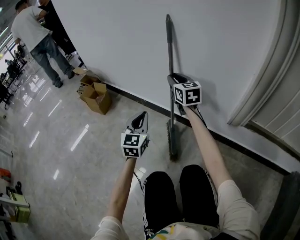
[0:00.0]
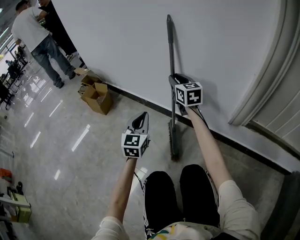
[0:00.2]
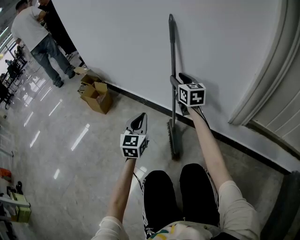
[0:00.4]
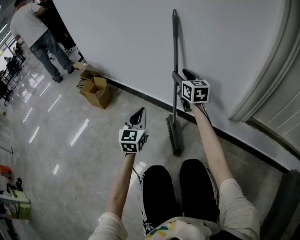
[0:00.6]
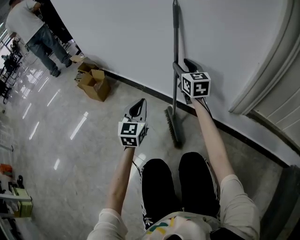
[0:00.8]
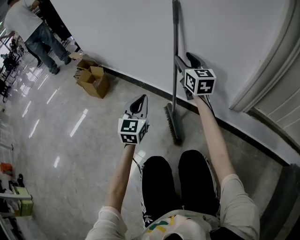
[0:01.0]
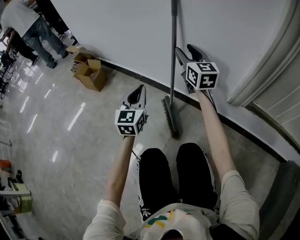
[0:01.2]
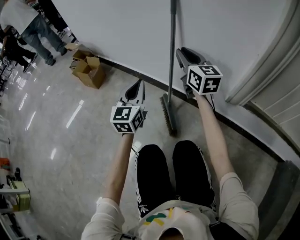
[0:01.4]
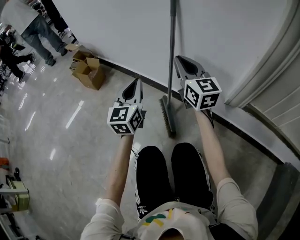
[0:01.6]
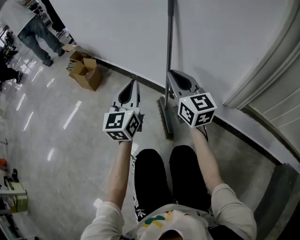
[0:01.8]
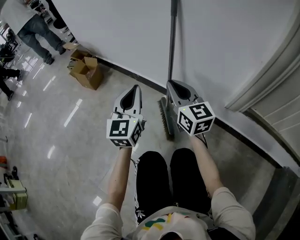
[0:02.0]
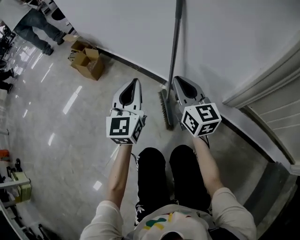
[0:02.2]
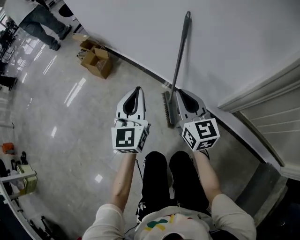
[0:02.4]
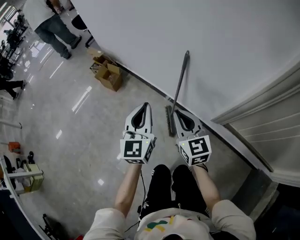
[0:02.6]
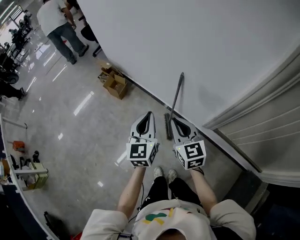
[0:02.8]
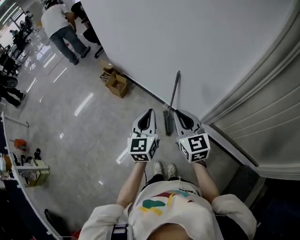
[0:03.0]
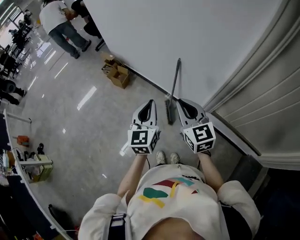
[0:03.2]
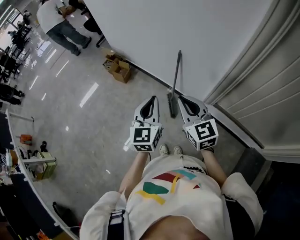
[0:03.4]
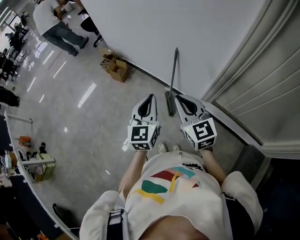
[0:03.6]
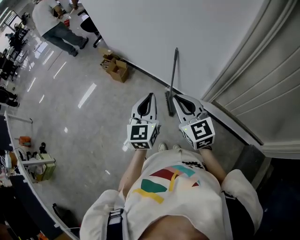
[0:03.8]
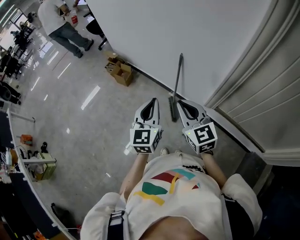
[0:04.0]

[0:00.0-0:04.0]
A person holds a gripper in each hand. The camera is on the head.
0:00.0 to 0:01.4: The right gripper moves backward, some 5 cm, and opens, then closes again.
0:01.4 to 0:02.6: The right gripper moves upward and backward, approximately 30 cm. The left gripper is displaced upward by about 35 cm.
0:02.6 to 0:04.0: Both grippers travel together upward and backward, approximately 30 cm.

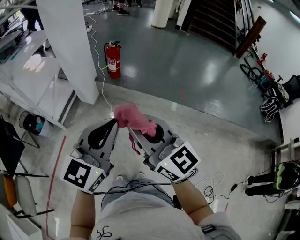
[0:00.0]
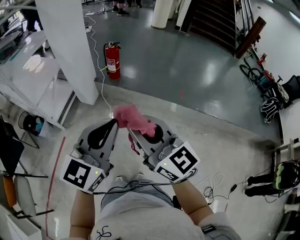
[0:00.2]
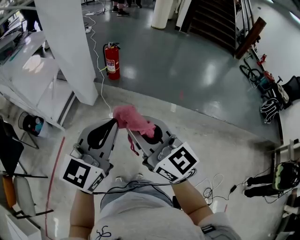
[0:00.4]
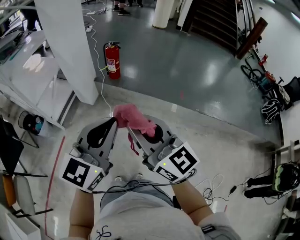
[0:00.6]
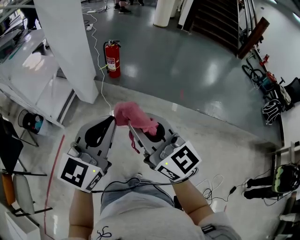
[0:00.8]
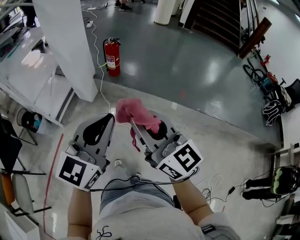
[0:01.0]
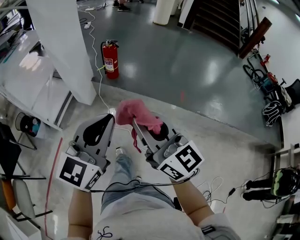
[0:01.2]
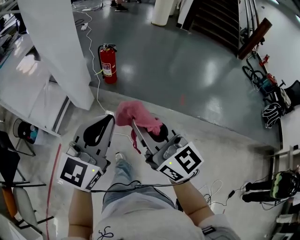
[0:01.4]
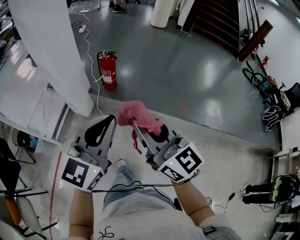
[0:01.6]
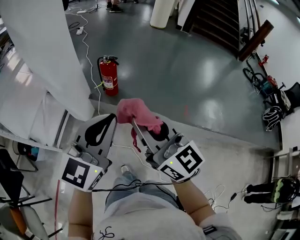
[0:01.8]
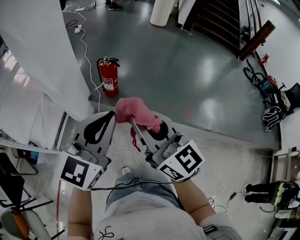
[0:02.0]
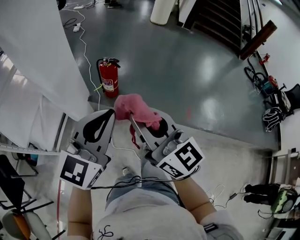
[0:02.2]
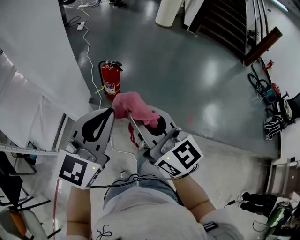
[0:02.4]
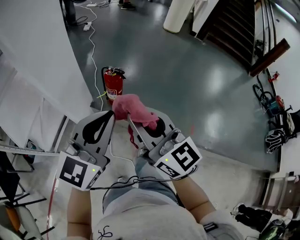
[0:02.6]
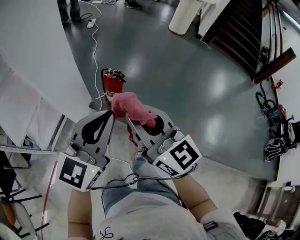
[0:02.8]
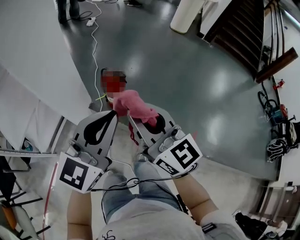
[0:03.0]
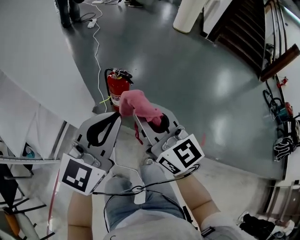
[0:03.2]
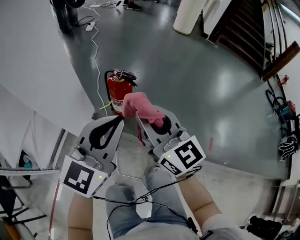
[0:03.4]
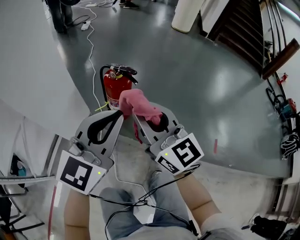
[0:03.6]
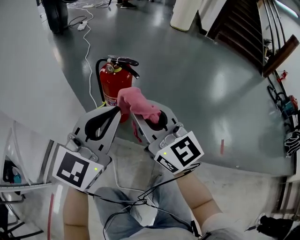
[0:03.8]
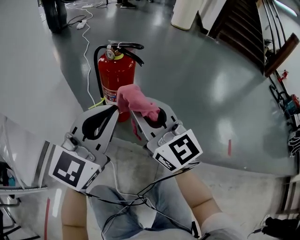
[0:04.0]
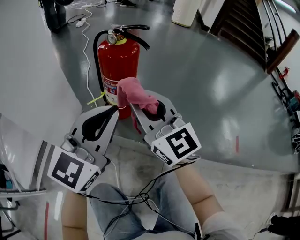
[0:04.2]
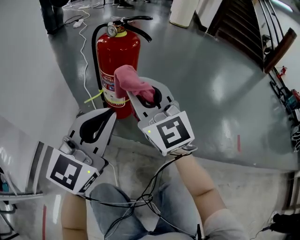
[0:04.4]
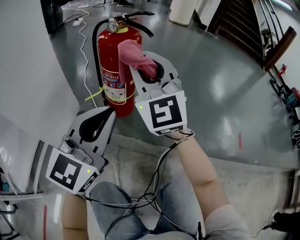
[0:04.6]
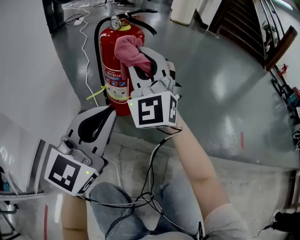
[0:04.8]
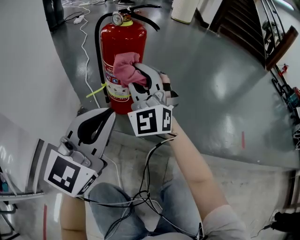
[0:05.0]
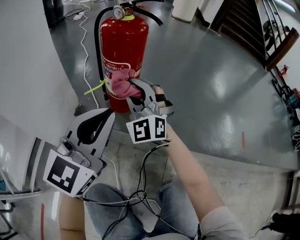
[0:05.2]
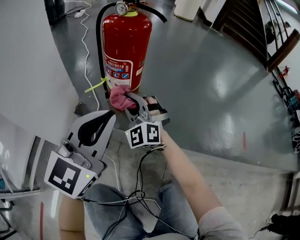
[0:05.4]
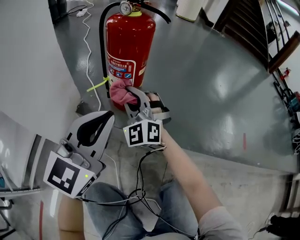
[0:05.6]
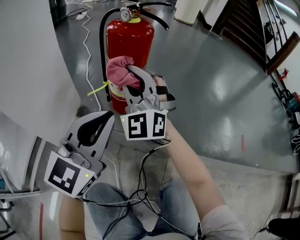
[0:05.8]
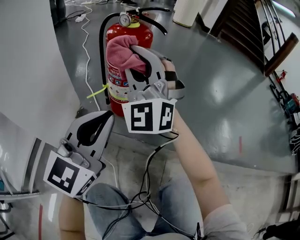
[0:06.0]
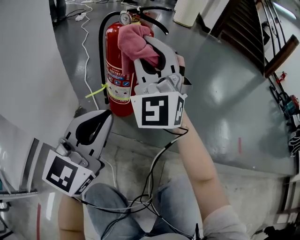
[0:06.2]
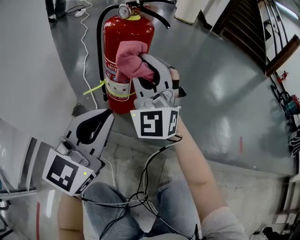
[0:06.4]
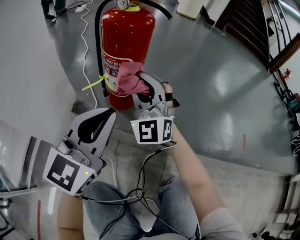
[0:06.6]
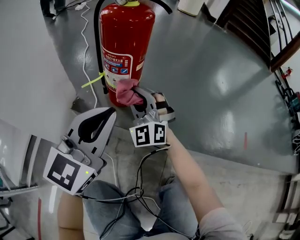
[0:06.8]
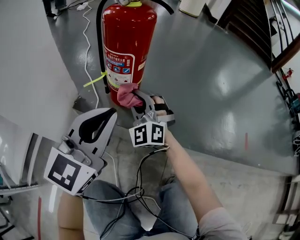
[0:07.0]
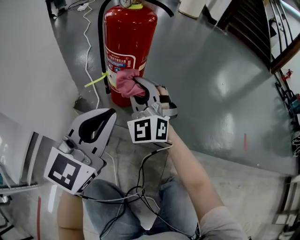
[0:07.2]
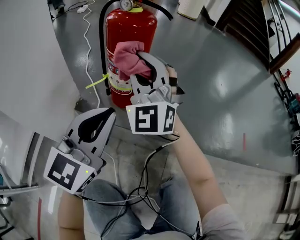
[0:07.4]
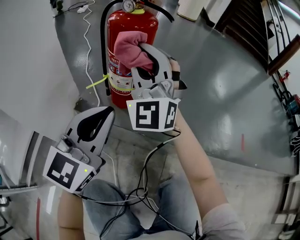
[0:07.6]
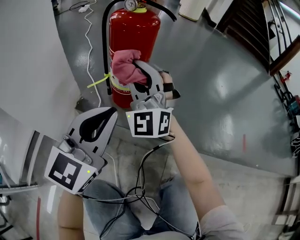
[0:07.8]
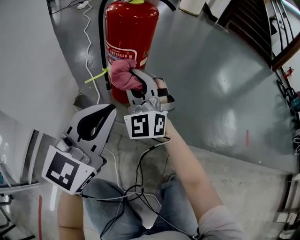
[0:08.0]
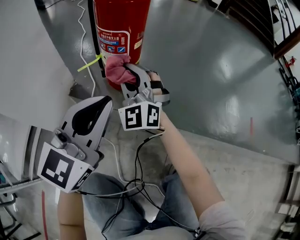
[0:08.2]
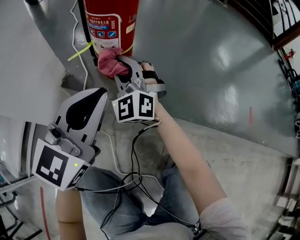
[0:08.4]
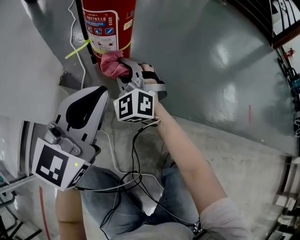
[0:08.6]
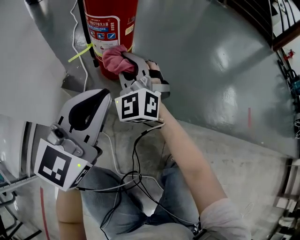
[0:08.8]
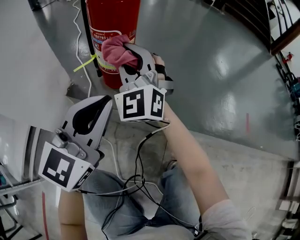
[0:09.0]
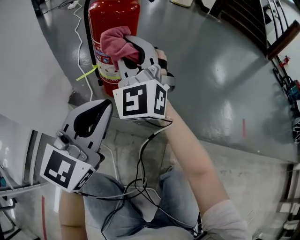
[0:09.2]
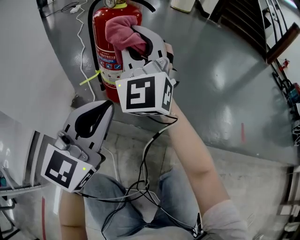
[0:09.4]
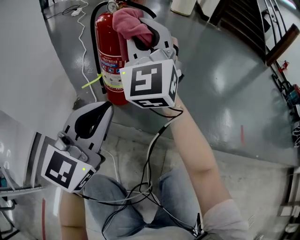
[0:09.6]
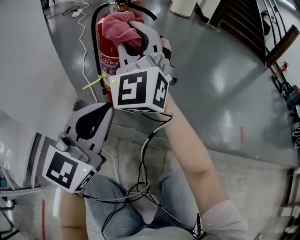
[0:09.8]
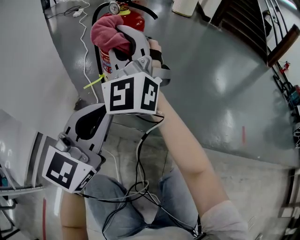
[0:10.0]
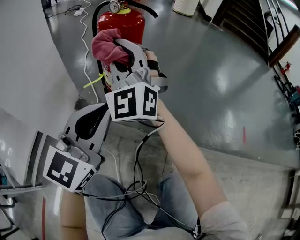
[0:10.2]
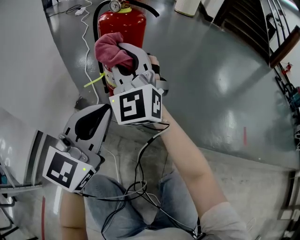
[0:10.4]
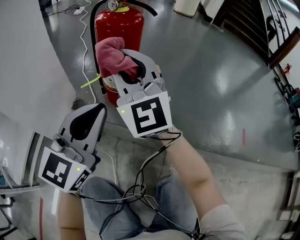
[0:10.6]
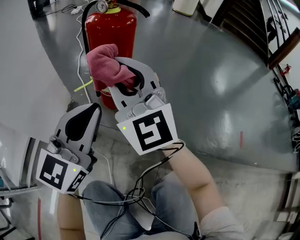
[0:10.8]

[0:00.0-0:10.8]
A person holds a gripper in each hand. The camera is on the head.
0:00.0 to 0:01.6: The two grippers go approximately 25 cm forward.
0:01.6 to 0:03.0: The grippers both shift forward by roughly 30 cm.
0:03.0 to 0:04.6: The right gripper moves downward and forward, about 40 cm, and rotates around the line of its fingers by some 40 degrees, counterclockwise from behind, while the left gripper heads downward, covering approximately 40 cm.
0:04.6 to 0:06.2: The right gripper moves about 25 cm downward and comes back, and changes its angle by roughly 20 degrees.
0:06.2 to 0:07.8: The right gripper goes up and down, about 25 cm each way, reversing 2 times.
0:07.8 to 0:09.2: The right gripper moves about 15 cm downward and comes back.
0:09.2 to 0:10.8: The right gripper goes upward and returns, some 10 cm each way, and turns by approximately 30 degrees.

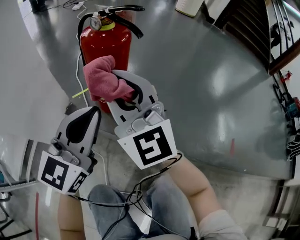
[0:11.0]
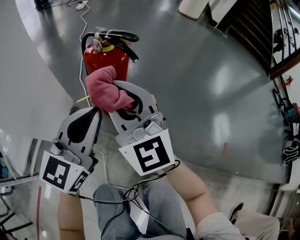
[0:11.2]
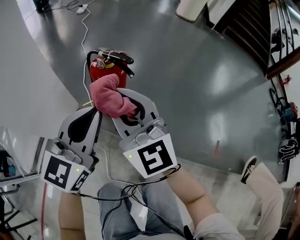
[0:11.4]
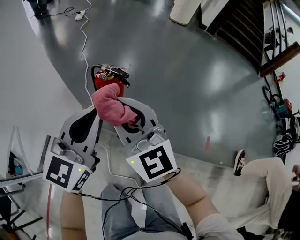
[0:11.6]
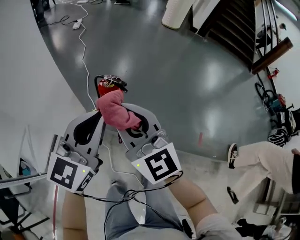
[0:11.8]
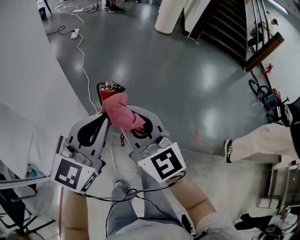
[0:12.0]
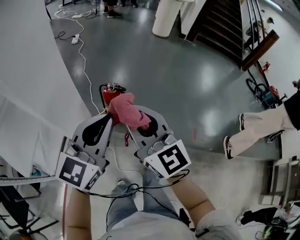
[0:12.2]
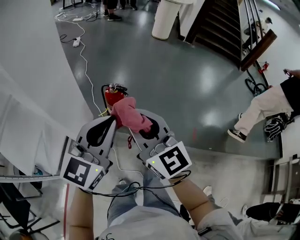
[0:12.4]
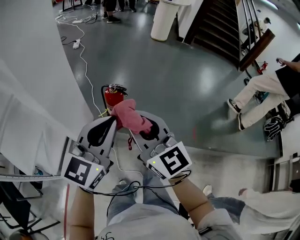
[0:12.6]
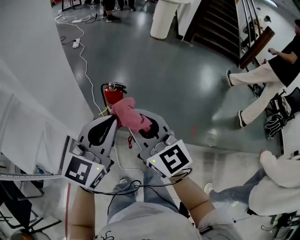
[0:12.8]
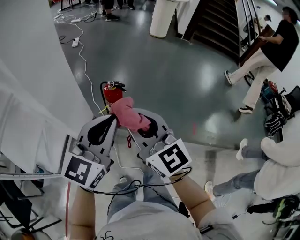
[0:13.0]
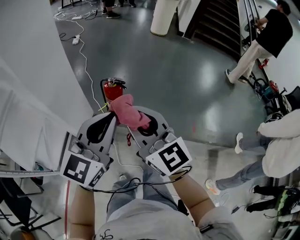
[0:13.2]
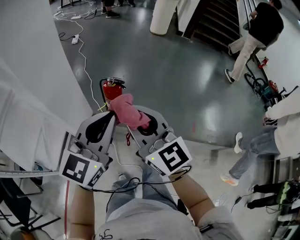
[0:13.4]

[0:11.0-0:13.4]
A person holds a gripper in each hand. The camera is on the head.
0:11.0 to 0:12.2: The right gripper shifts roughly 50 cm upward and backward, and swivels about 20 degrees, while the left gripper heads upward, covering about 50 cm.
0:12.2 to 0:13.4: Both grippers move backward, approximately 5 cm.

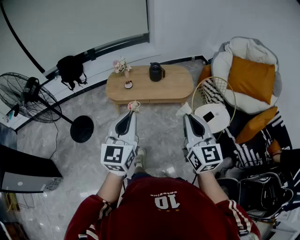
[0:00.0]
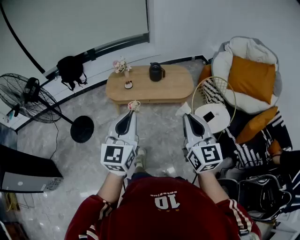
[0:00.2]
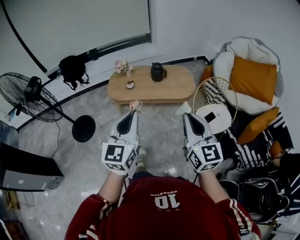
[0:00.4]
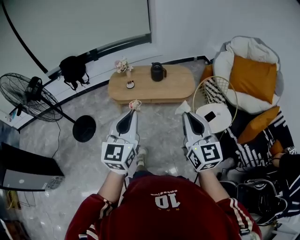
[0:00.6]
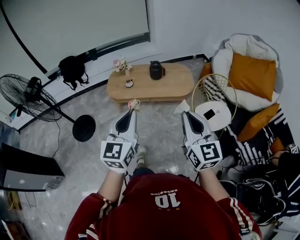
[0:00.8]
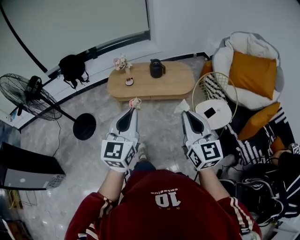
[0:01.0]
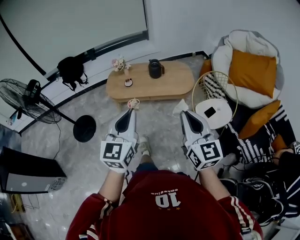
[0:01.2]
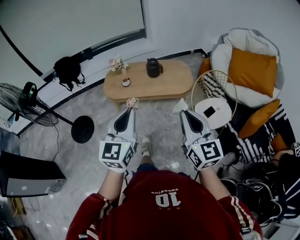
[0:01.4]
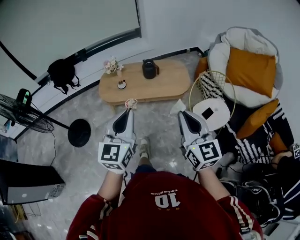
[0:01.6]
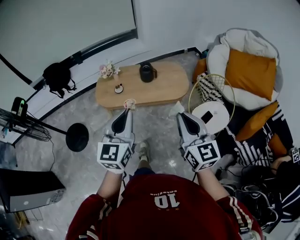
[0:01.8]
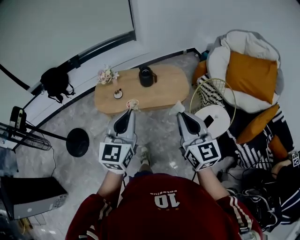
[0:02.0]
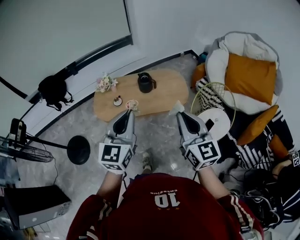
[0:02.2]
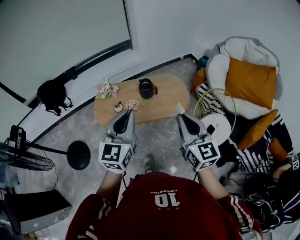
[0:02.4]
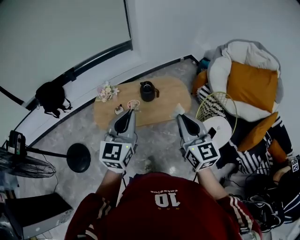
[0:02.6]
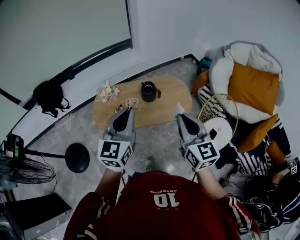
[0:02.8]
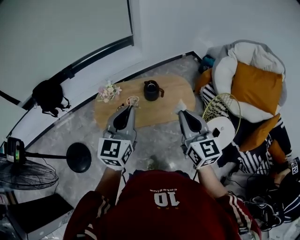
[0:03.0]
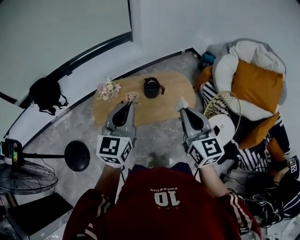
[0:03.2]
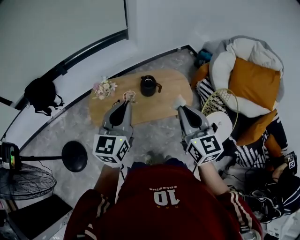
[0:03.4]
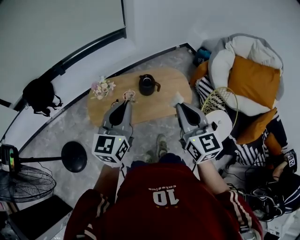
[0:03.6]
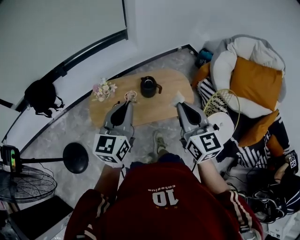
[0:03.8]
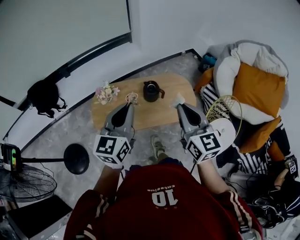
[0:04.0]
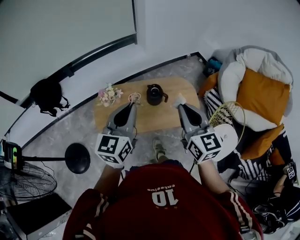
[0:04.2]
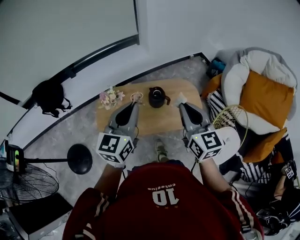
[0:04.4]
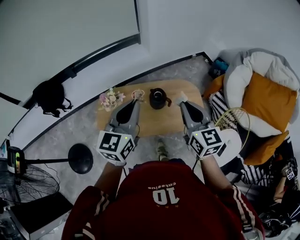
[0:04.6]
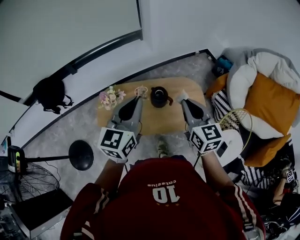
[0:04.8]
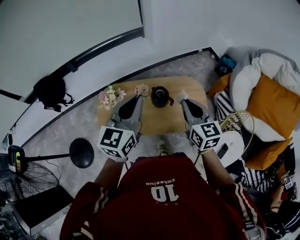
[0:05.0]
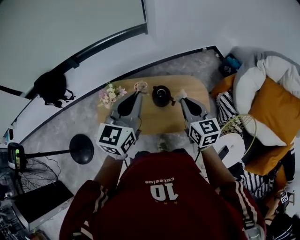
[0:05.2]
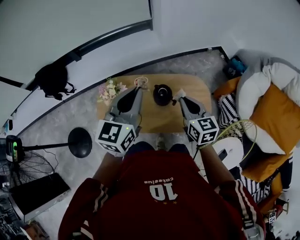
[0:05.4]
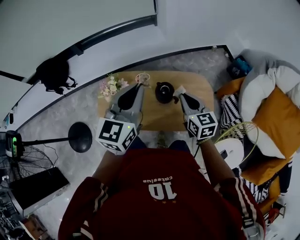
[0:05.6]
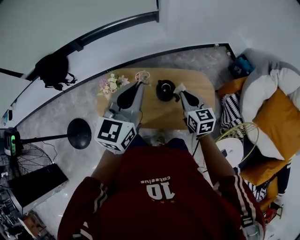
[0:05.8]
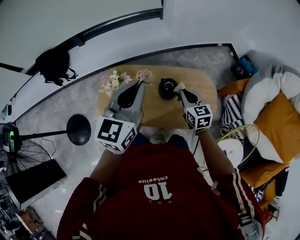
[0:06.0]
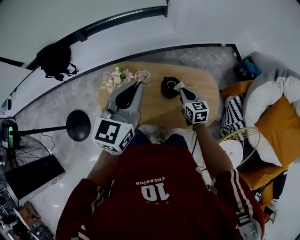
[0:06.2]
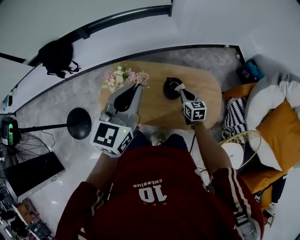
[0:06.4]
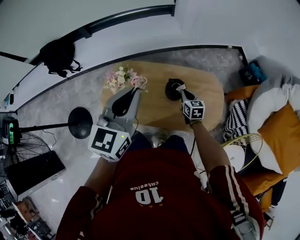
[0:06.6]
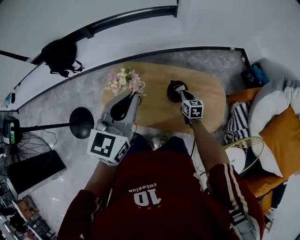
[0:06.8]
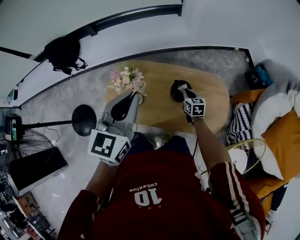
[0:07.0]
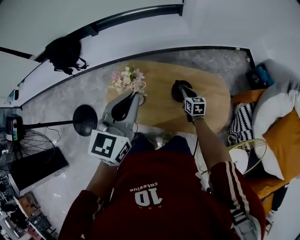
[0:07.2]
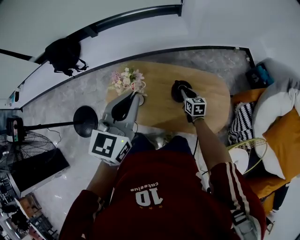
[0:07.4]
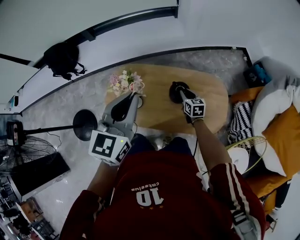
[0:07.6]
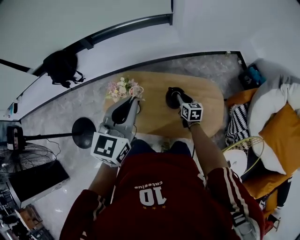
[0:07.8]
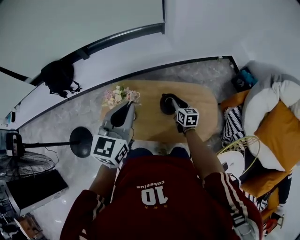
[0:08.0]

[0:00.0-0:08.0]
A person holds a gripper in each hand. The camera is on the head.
0:00.0 to 0:01.6: The grippers both shift forward by some 5 cm.
0:01.6 to 0:03.2: The grippers both shift forward by roughly 35 cm.
0:03.2 to 0:04.8: Both grippers move forward, about 20 cm.
0:04.8 to 0:06.4: The right gripper heads downward and forward, covering approximately 35 cm, and turns by about 30 degrees; the left gripper is displaced forward and downward by approximately 10 cm.
0:06.4 to 0:08.0: The right gripper goes downward and returns, approximately 5 cm each way.
